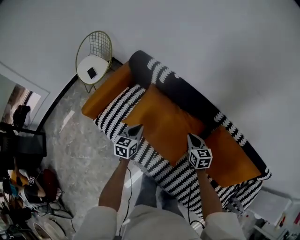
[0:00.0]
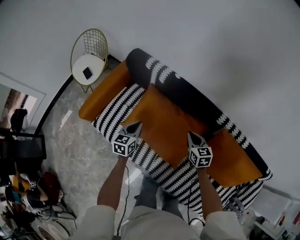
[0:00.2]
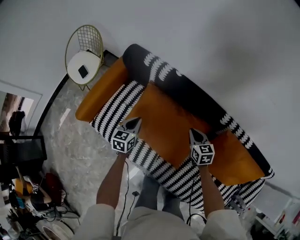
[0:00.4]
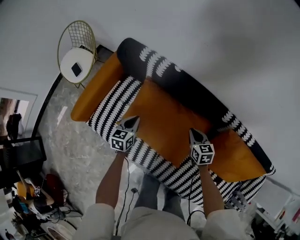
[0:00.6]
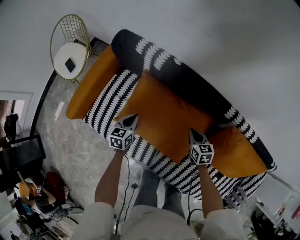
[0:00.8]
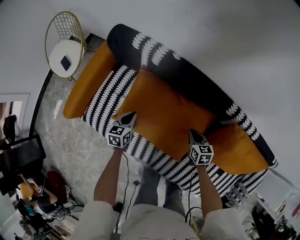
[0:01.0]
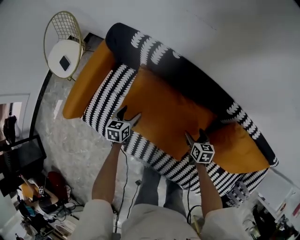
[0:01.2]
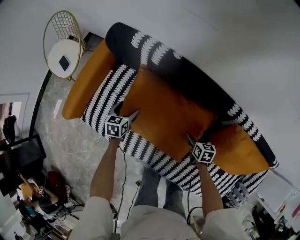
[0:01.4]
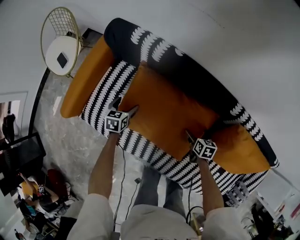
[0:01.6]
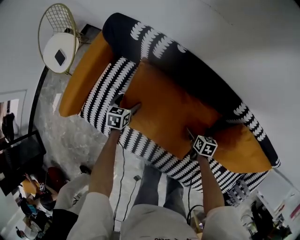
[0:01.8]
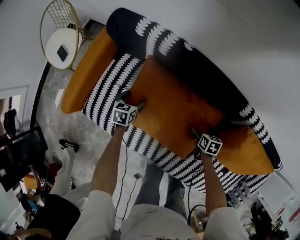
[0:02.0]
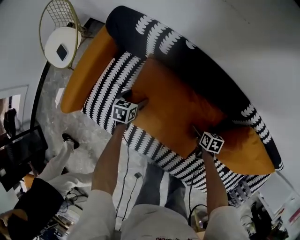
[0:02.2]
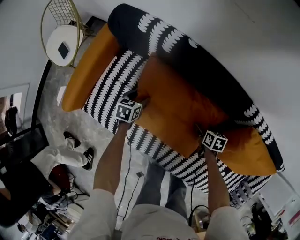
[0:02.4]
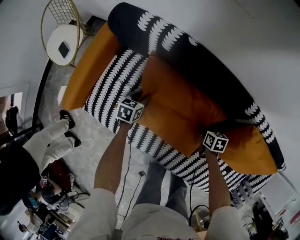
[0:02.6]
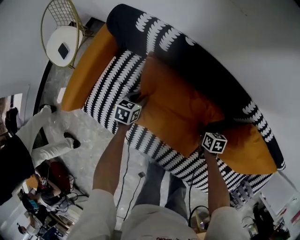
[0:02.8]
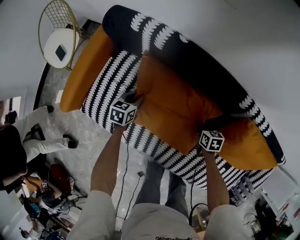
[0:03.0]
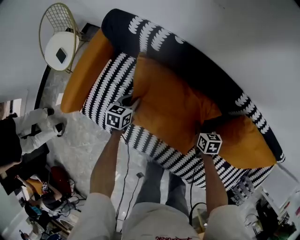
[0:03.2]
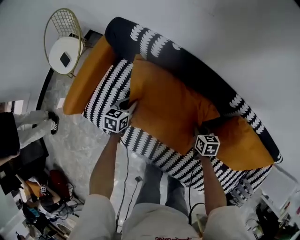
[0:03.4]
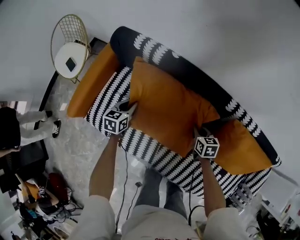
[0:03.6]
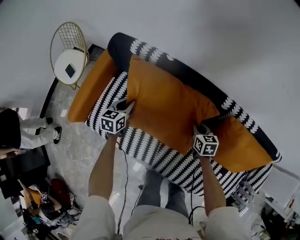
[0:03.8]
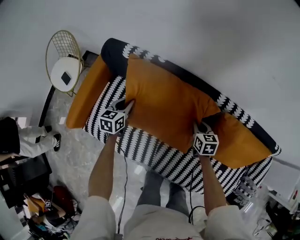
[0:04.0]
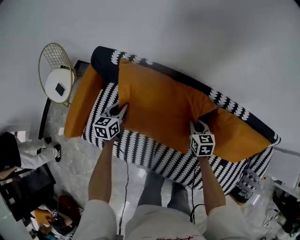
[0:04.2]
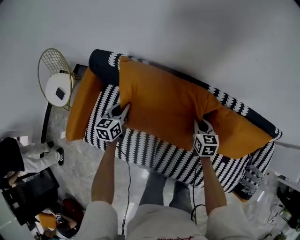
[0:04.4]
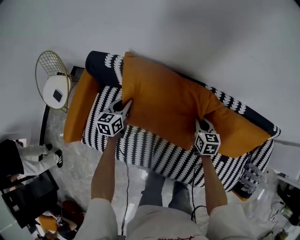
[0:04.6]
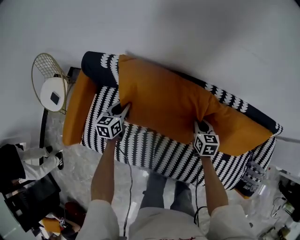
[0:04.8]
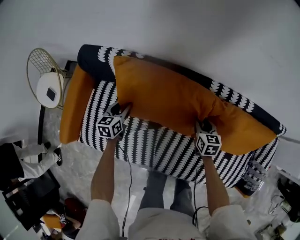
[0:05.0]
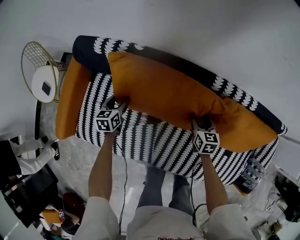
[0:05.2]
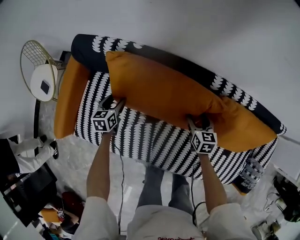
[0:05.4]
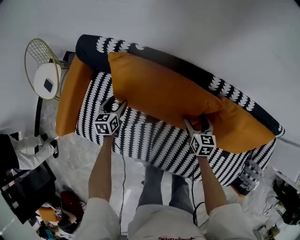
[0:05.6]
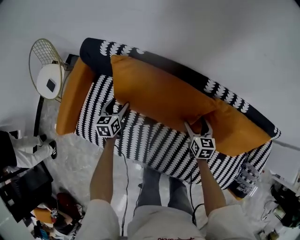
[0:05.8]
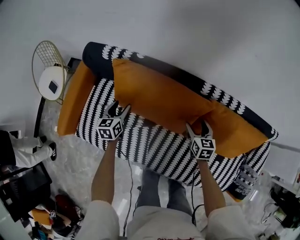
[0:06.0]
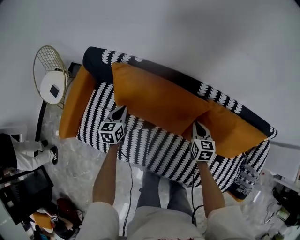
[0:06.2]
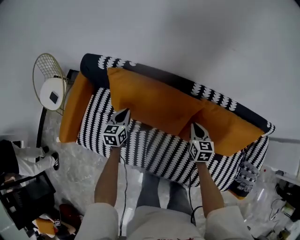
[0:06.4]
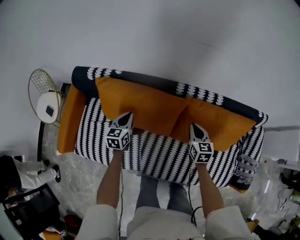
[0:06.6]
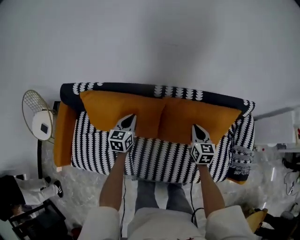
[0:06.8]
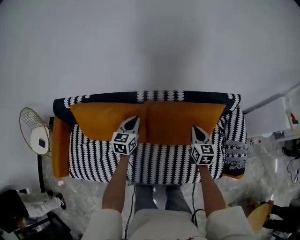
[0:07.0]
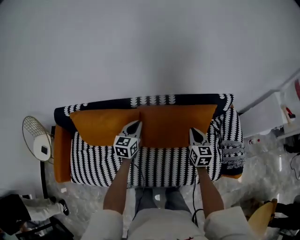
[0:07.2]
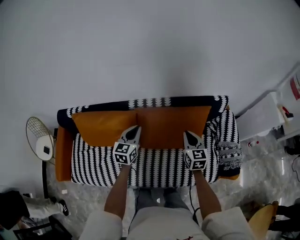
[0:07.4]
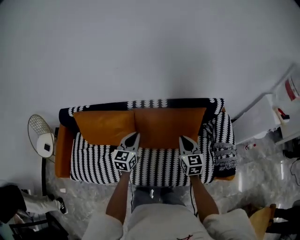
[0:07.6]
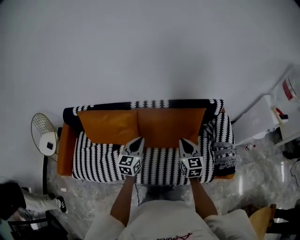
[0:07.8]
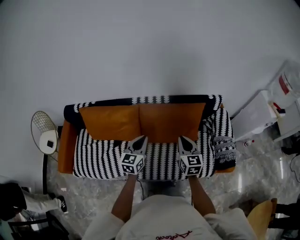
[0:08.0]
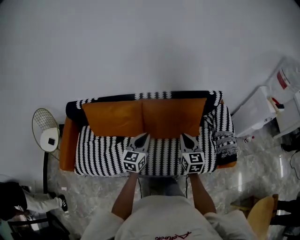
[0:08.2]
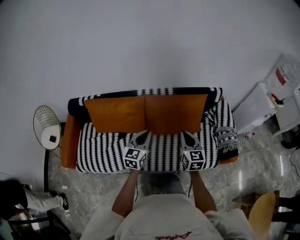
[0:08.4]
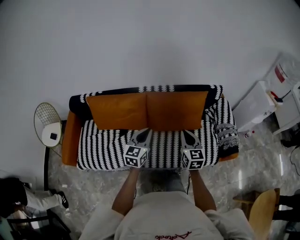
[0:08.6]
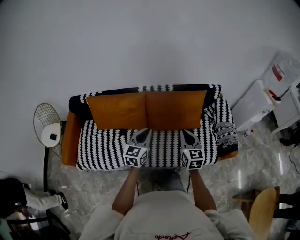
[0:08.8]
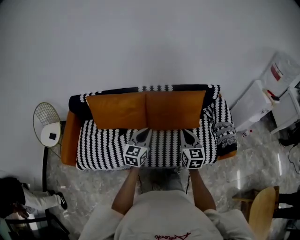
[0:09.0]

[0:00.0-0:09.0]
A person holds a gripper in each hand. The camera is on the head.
0.0 to 1.6 s: The right gripper travels downward by some 20 cm, rotates approximately 40 degrees, and opens; the left gripper heads downward and forward, covering about 25 cm, swivels about 20 degrees, and opens.
1.6 to 3.0 s: The left gripper closes up, while the right gripper closes up.
3.0 to 4.4 s: Both grippers move upward, approximately 20 cm. The right gripper rotates some 30 degrees. The left gripper swivels roughly 20 degrees.
4.4 to 6.0 s: The right gripper opens, while the left gripper is displaced downward by about 5 cm, and opens.
6.0 to 7.6 s: The left gripper moves some 50 cm, rotates about 30 degrees, and closes up, while the right gripper ends up roughly 40 cm from where it was, rotates approximately 30 degrees, and closes its fingers.
7.6 to 9.0 s: The grippers both shift backward by some 20 cm.

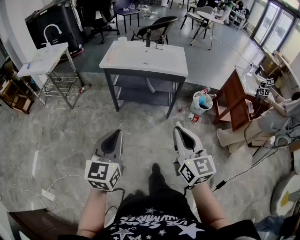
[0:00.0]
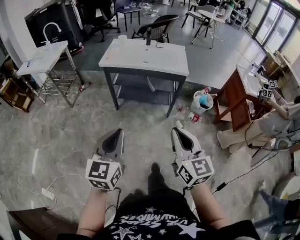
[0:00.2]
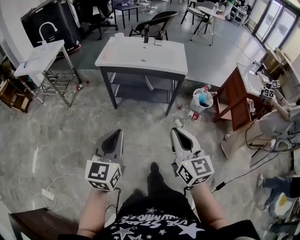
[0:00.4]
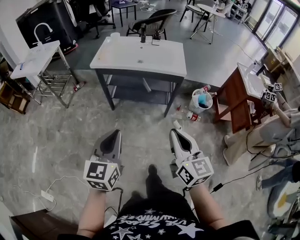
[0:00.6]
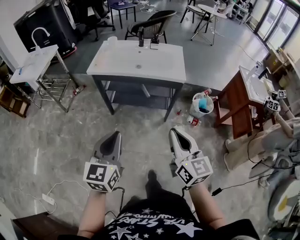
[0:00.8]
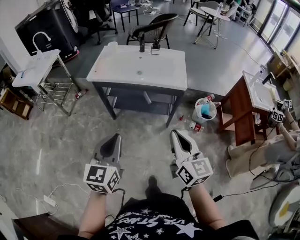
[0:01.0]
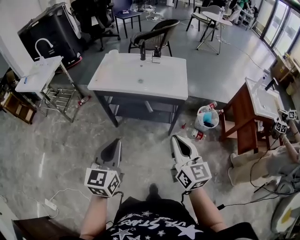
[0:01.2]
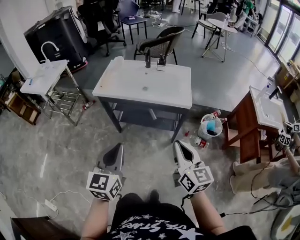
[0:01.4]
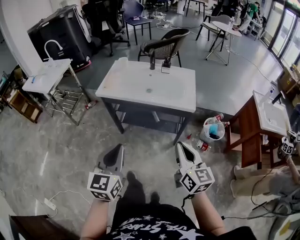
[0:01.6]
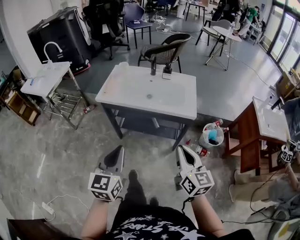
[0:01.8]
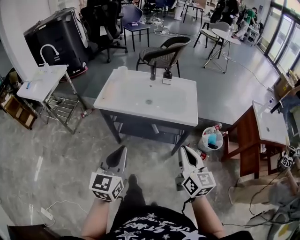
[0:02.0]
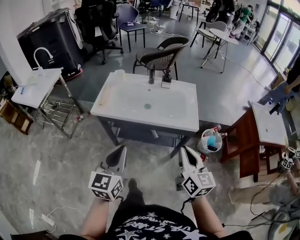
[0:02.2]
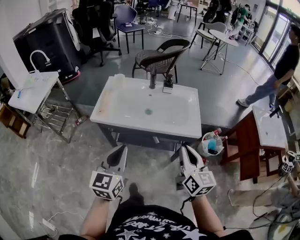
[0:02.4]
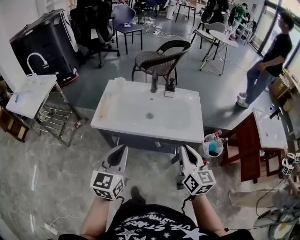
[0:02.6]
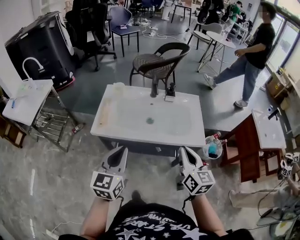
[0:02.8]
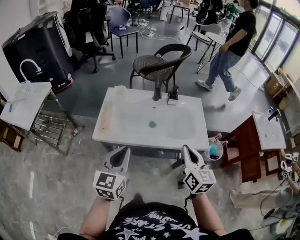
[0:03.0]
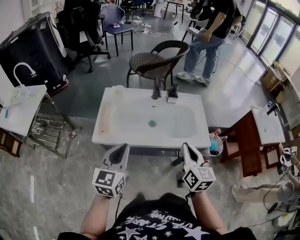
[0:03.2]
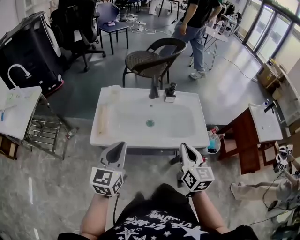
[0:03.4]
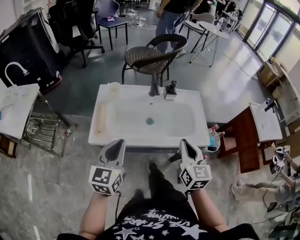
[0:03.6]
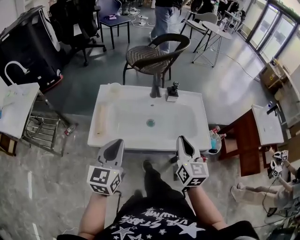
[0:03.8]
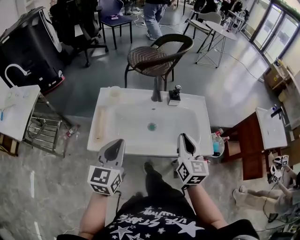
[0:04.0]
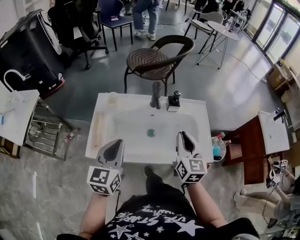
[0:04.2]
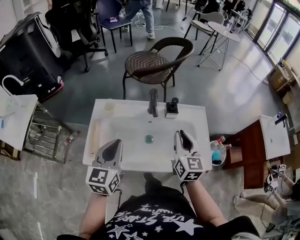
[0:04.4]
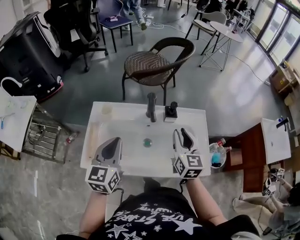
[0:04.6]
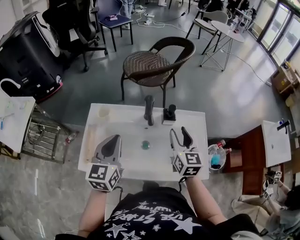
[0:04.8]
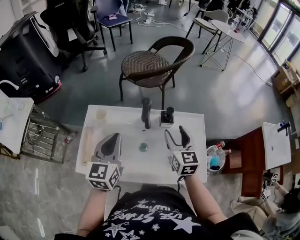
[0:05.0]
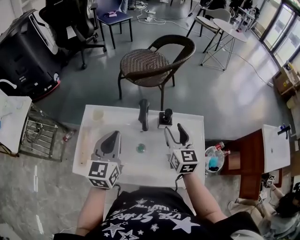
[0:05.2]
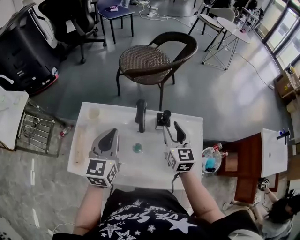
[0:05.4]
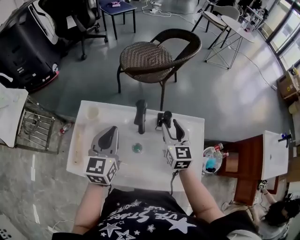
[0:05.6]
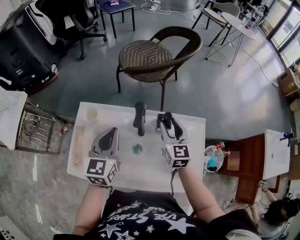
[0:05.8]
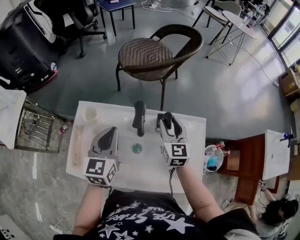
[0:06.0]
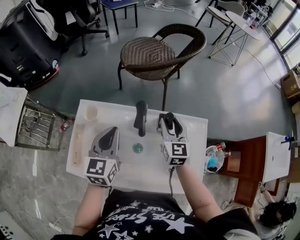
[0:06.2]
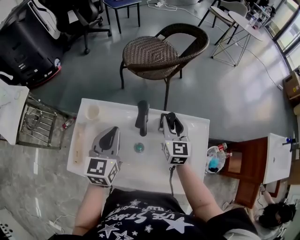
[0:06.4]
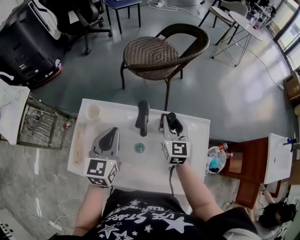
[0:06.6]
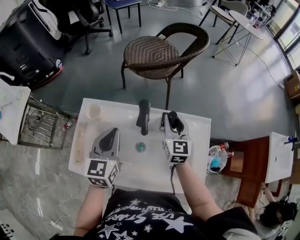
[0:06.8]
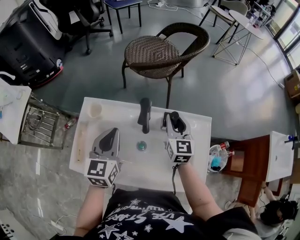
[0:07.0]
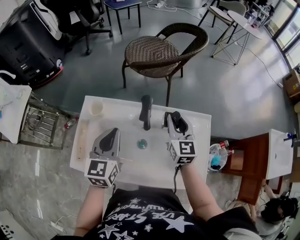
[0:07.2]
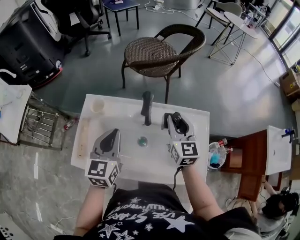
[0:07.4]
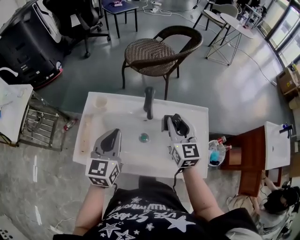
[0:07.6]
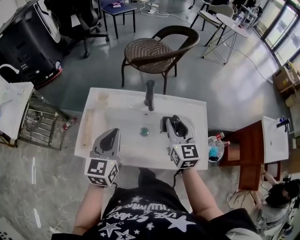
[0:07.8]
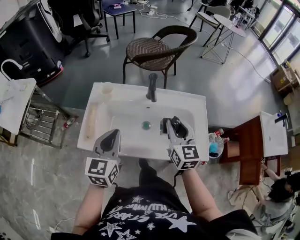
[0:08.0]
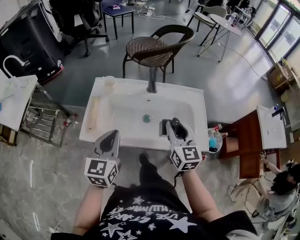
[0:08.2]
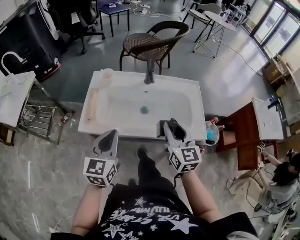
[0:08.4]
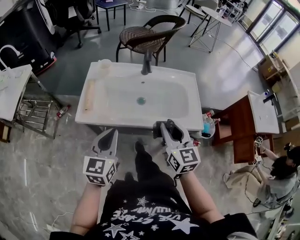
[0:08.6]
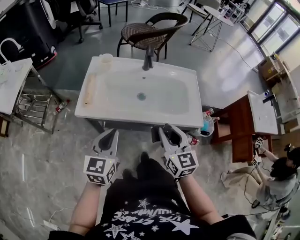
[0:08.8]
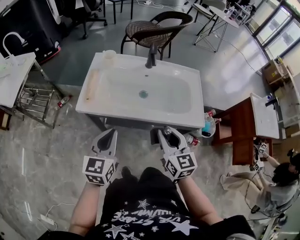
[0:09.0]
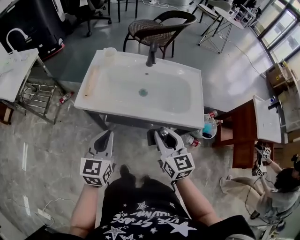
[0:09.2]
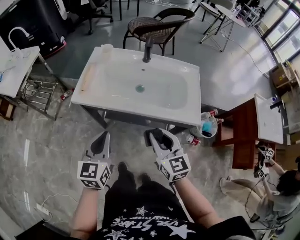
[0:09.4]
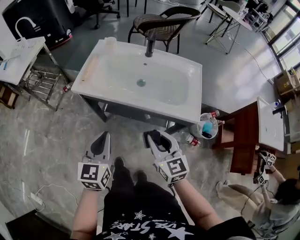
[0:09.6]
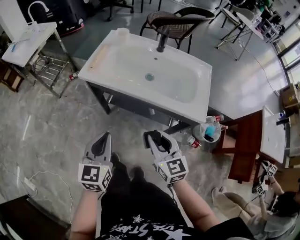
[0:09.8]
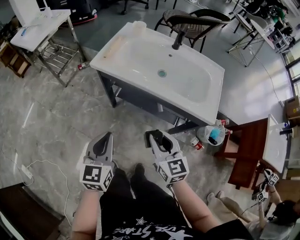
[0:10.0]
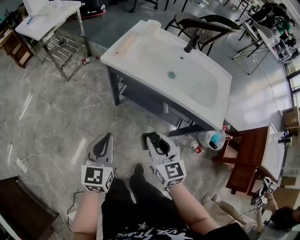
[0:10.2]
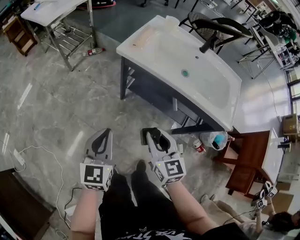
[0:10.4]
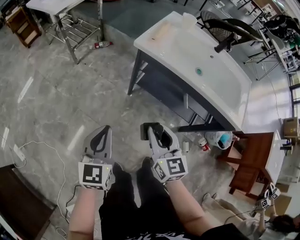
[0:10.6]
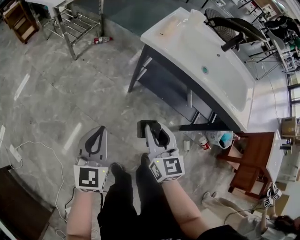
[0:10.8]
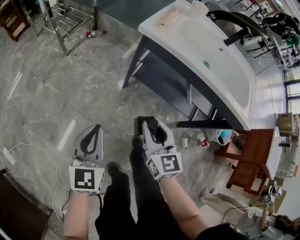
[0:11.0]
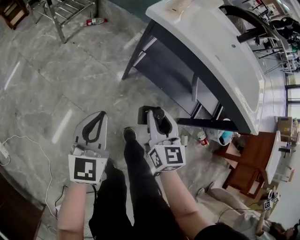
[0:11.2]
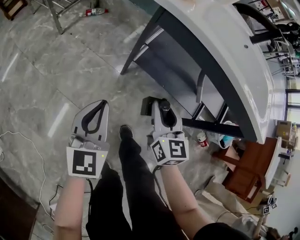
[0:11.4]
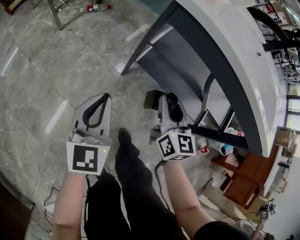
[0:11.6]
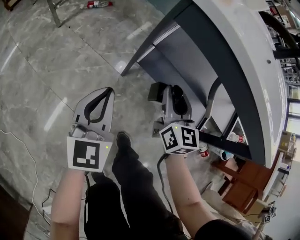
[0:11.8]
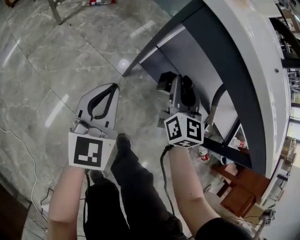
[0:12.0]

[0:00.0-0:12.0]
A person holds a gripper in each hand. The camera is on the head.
0.0 to 1.6 s: The right gripper heads forward and to the right, covering roughly 25 cm; the left gripper travels forward by approximately 20 cm.
1.6 to 3.0 s: Both grippers travel together forward, about 25 cm.
3.0 to 4.4 s: Both grippers move forward, roughly 20 cm.
4.4 to 6.0 s: The two grippers go about 15 cm forward. The right gripper opens its fingers.
6.0 to 7.6 s: The left gripper travels backward by roughly 10 cm; the right gripper heads backward and upward, covering some 10 cm.
7.6 to 9.0 s: The grippers both shift backward by about 30 cm.
9.0 to 10.4 s: The left gripper changes place by about 25 cm, and rotates some 30 degrees, while the right gripper moves about 20 cm, and changes its angle by approximately 30 degrees.
10.4 to 12.0 s: The right gripper goes some 40 cm forward and downward, while the left gripper heads downward and forward, covering some 35 cm.

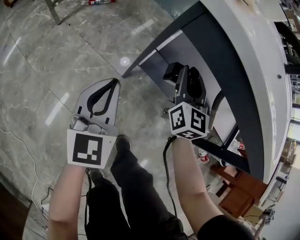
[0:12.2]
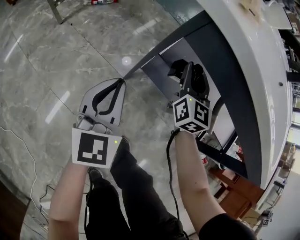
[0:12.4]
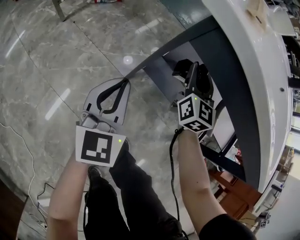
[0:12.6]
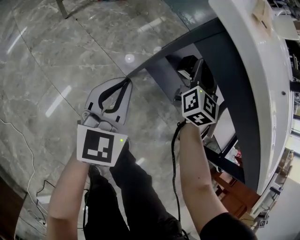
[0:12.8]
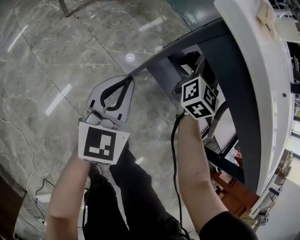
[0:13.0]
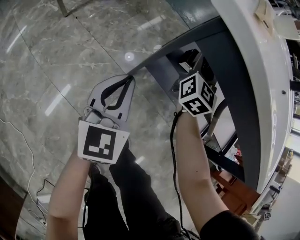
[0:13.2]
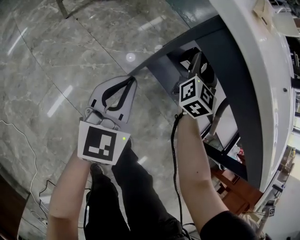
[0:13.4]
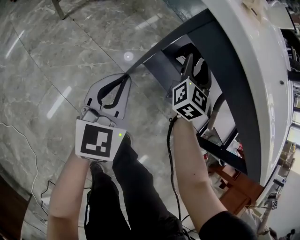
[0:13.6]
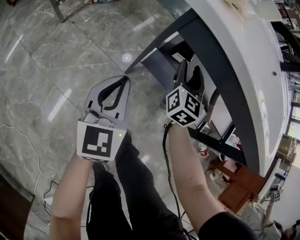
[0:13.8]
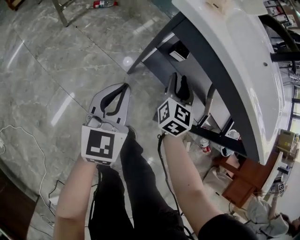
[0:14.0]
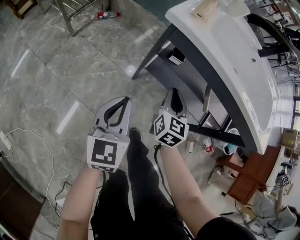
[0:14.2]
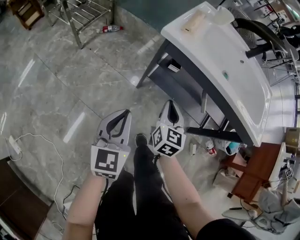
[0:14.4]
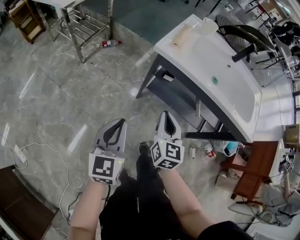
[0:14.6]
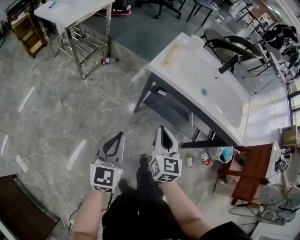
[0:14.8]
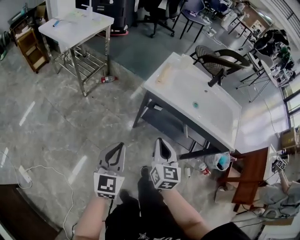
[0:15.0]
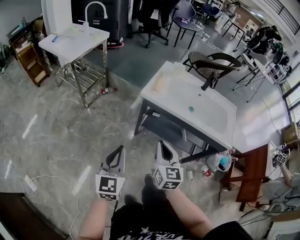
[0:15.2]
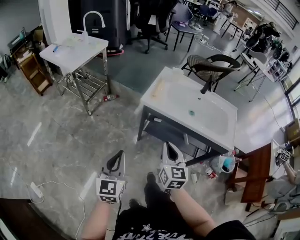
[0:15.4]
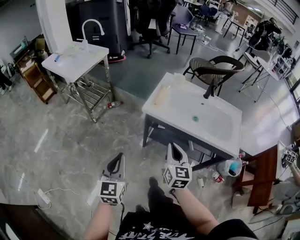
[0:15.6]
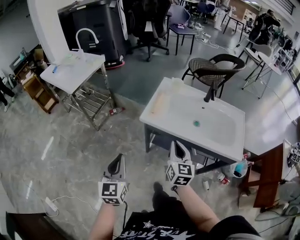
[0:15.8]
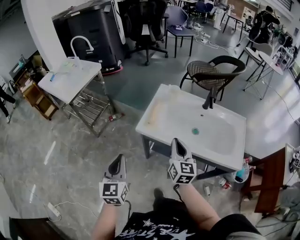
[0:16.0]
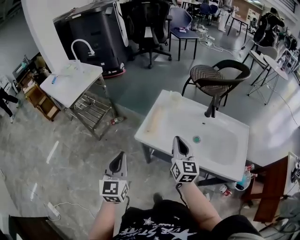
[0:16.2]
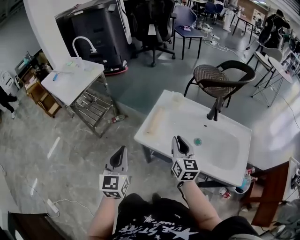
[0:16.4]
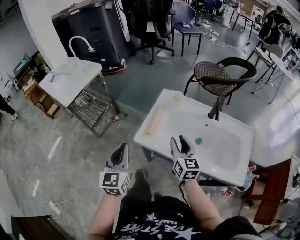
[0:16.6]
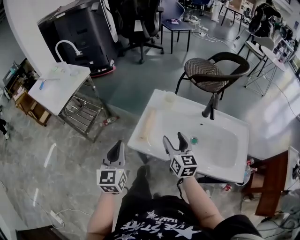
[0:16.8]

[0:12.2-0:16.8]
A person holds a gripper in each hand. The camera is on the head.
12.2 to 13.8 s: The right gripper goes forward and returns, about 10 cm each way.
13.8 to 15.2 s: Both grippers travel together upward and backward, some 40 cm. The right gripper closes up.
15.2 to 16.8 s: Both grippers travel together forward, about 30 cm. The right gripper opens.
